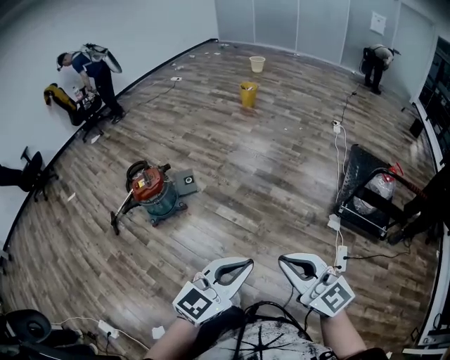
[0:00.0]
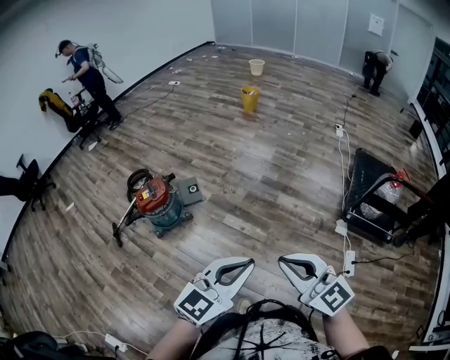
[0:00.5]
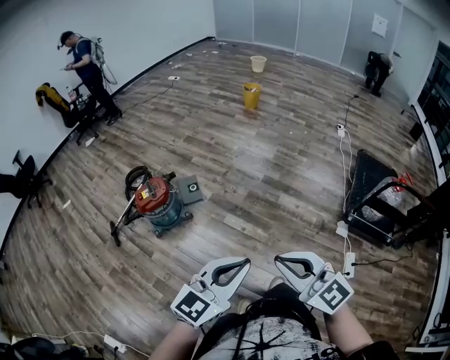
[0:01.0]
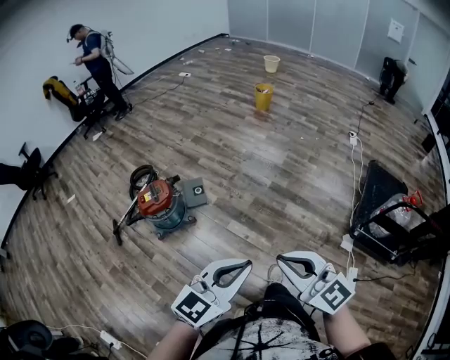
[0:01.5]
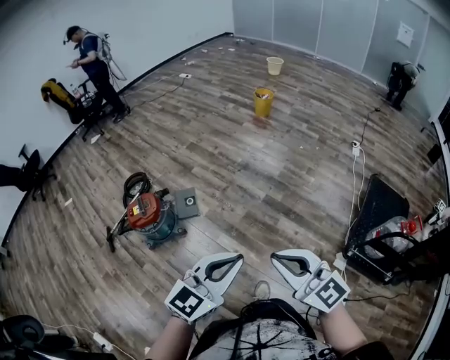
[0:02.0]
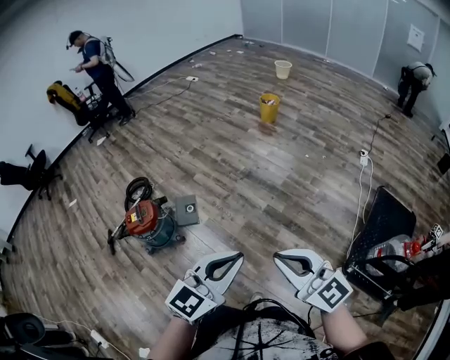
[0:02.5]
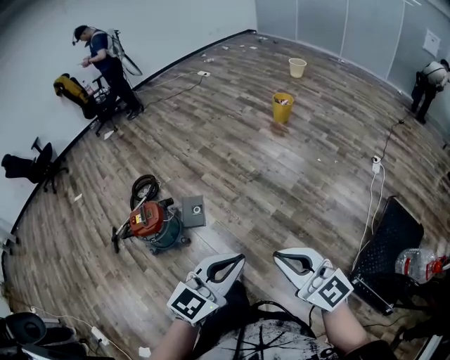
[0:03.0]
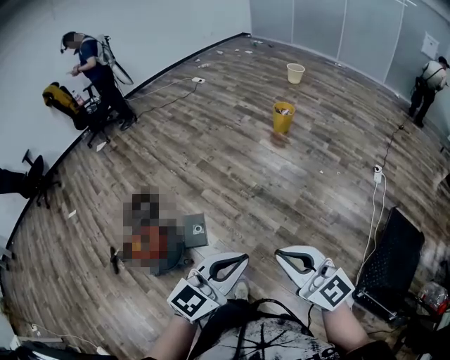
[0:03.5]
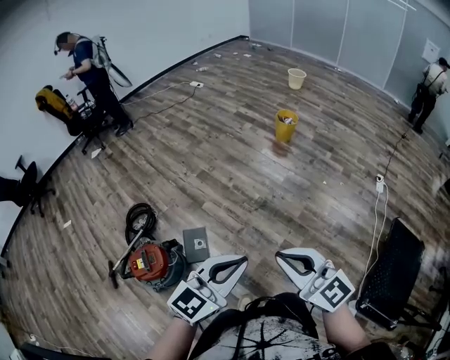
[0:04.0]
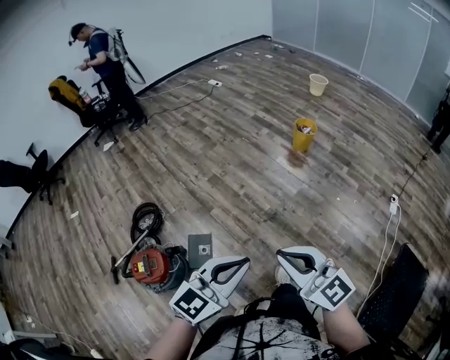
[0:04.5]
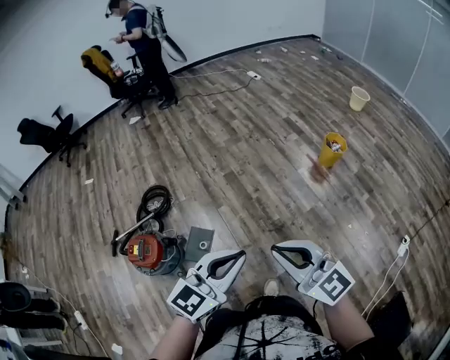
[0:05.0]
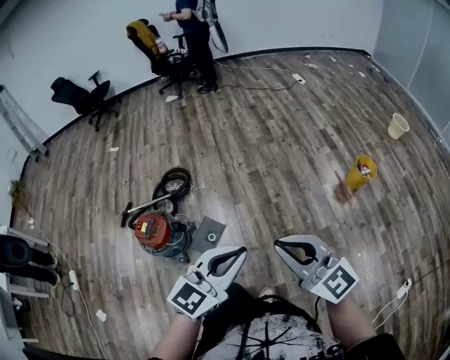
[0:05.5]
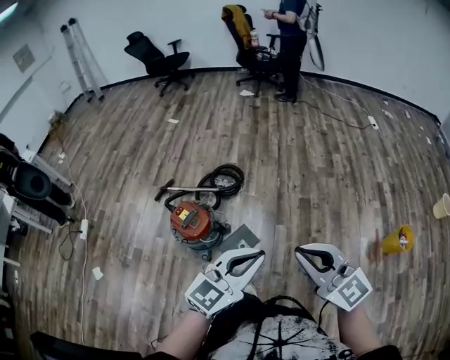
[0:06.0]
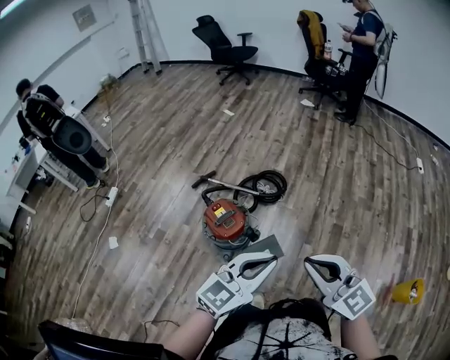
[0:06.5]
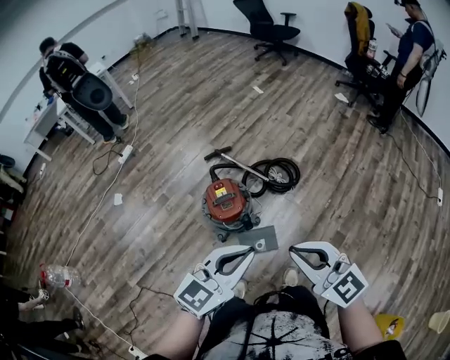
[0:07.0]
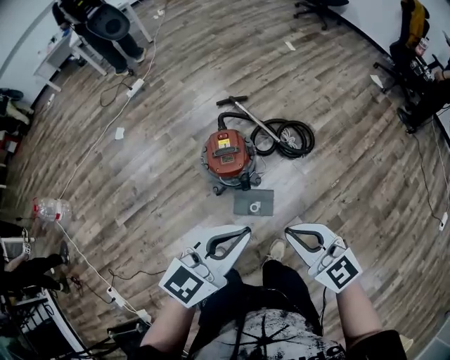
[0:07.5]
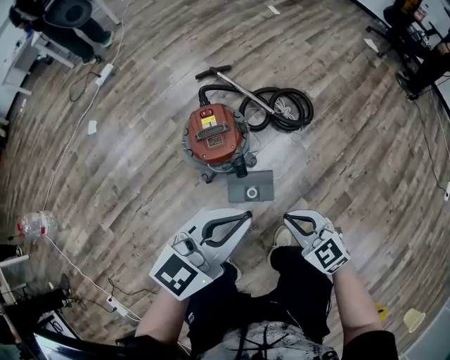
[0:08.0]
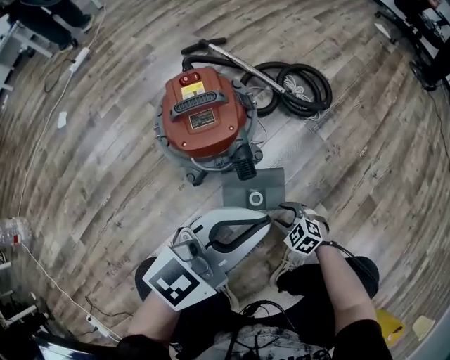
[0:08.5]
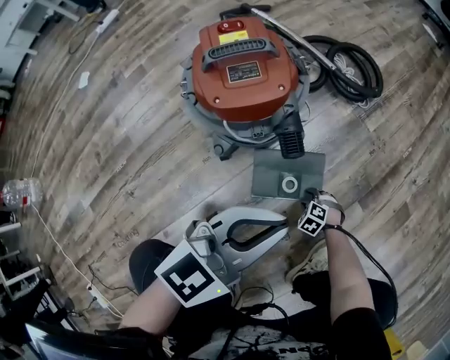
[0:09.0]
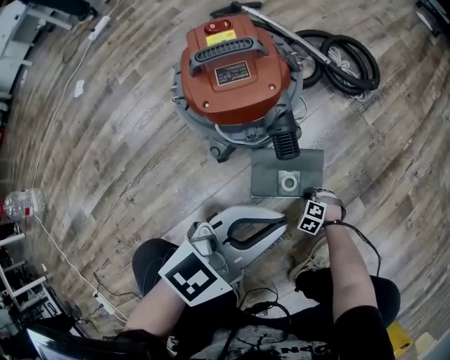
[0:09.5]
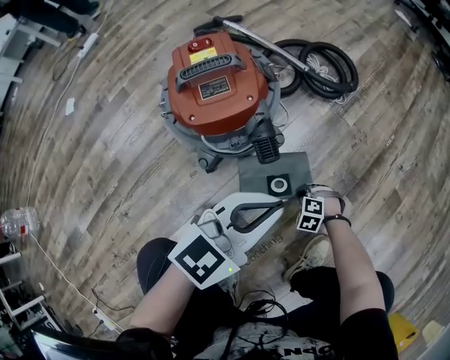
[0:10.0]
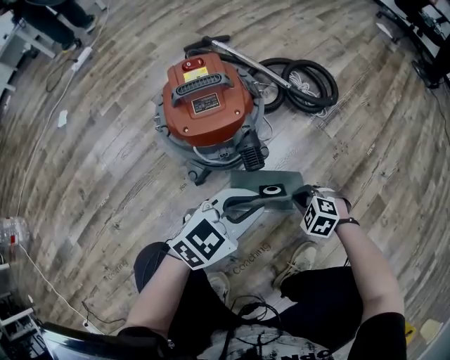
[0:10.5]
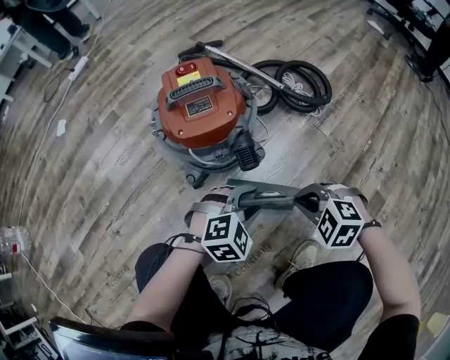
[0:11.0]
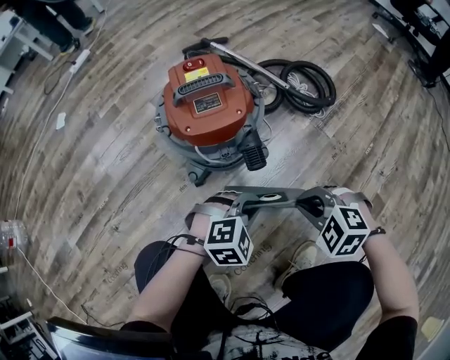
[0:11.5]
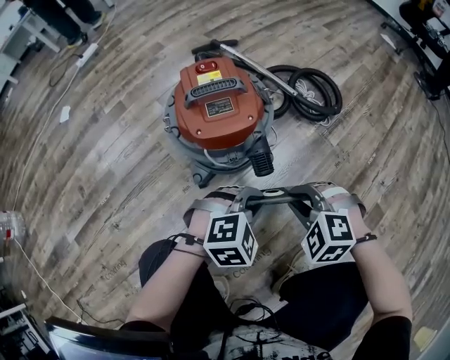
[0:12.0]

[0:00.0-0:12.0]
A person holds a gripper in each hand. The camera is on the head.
0:00.0 to 0:02.0: The grippers both shift forward by some 35 cm.
0:02.0 to 0:04.0: The two grippers go some 40 cm forward.
0:04.0 to 0:06.0: The right gripper shifts by approximately 30 cm, and rotates some 60 degrees, while the left gripper changes place by approximately 25 cm, and rotates some 60 degrees.
0:06.0 to 0:08.0: The right gripper moves downward, about 40 cm, and tilts its fingers roughly 40 degrees downward. The left gripper shifts by approximately 30 cm, and swivels some 40 degrees.
0:08.0 to 0:10.0: Both grippers move downward, roughly 50 cm. The right gripper tips its fingers downward by approximately 40 degrees, and opens, then closes again.
0:10.0 to 0:12.0: The left gripper shifts some 10 cm downward, points its fingers some 30 degrees further downward, and opens, then closes again, while the right gripper shifts about 30 cm upward.

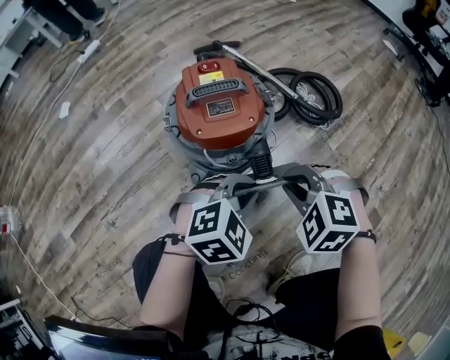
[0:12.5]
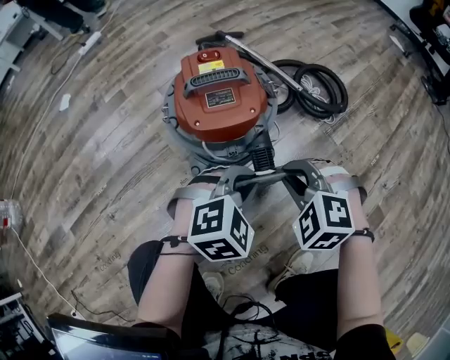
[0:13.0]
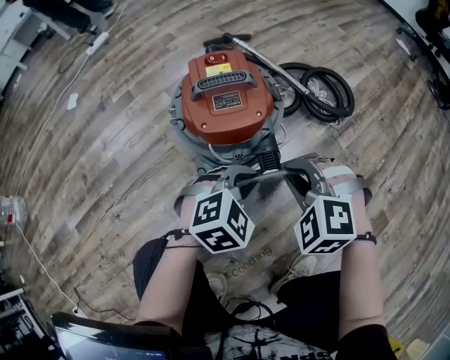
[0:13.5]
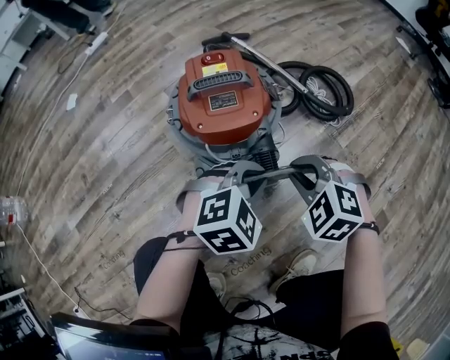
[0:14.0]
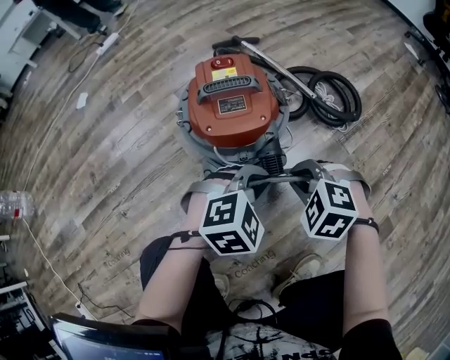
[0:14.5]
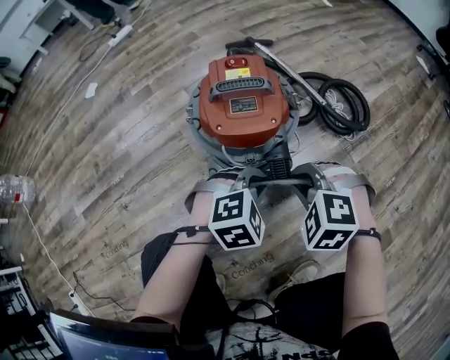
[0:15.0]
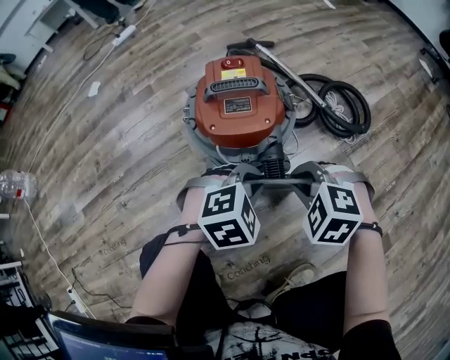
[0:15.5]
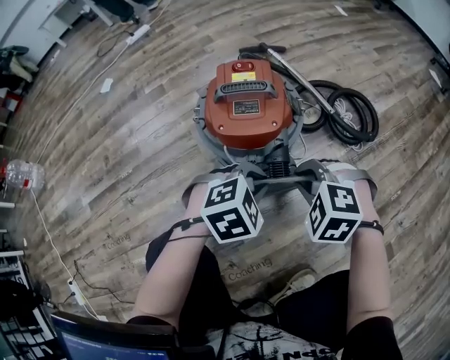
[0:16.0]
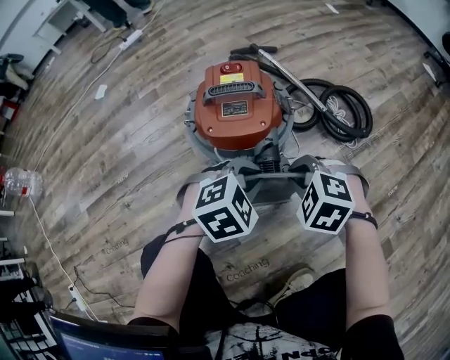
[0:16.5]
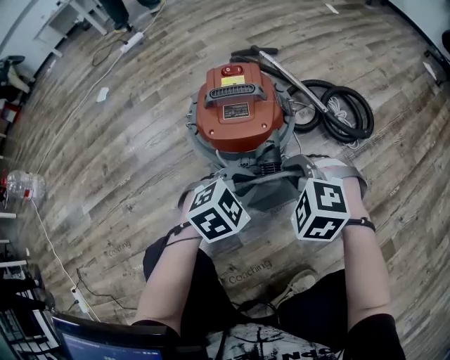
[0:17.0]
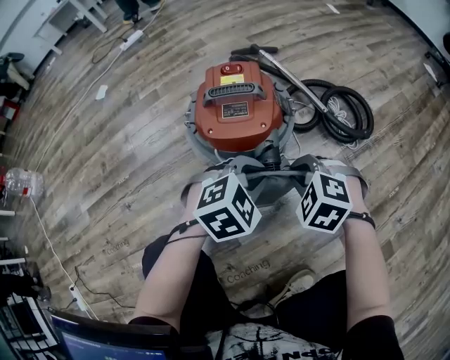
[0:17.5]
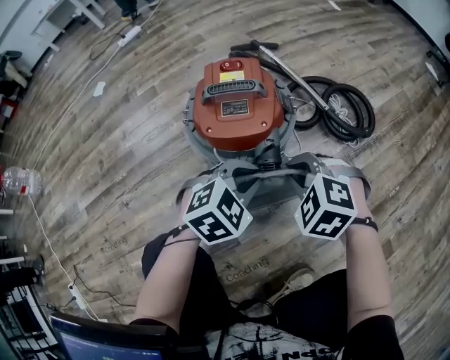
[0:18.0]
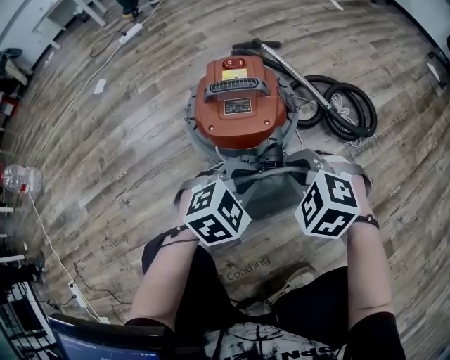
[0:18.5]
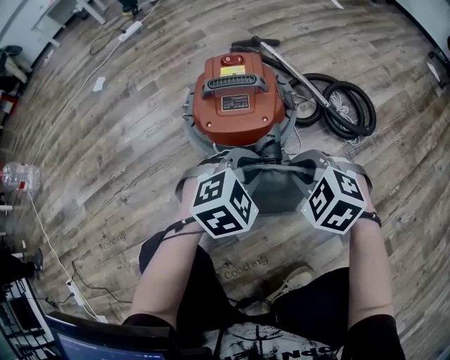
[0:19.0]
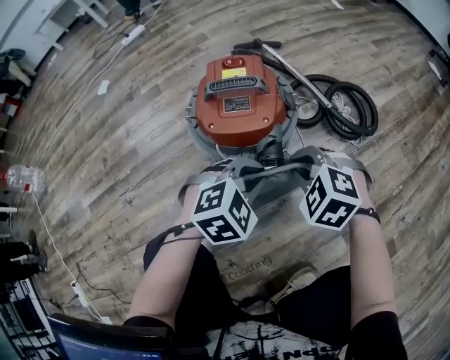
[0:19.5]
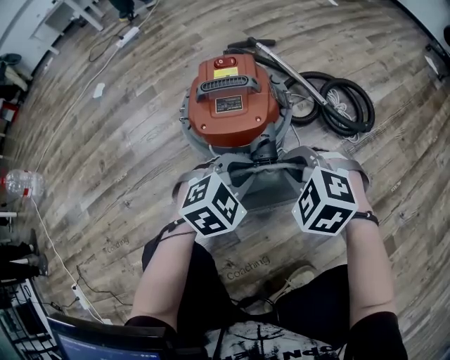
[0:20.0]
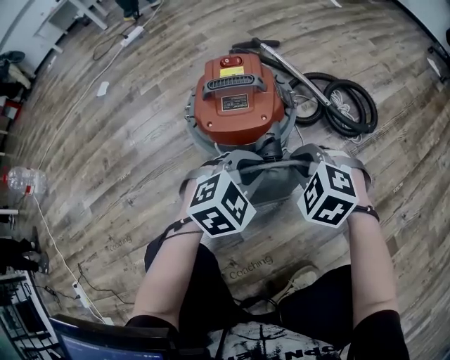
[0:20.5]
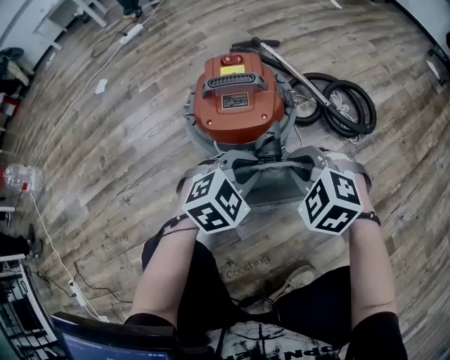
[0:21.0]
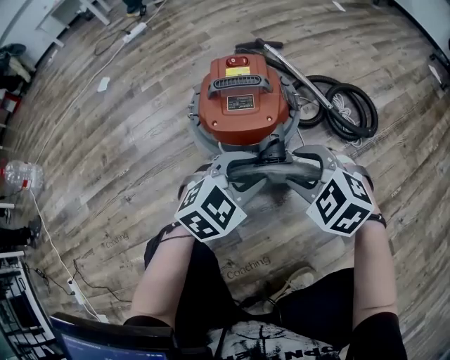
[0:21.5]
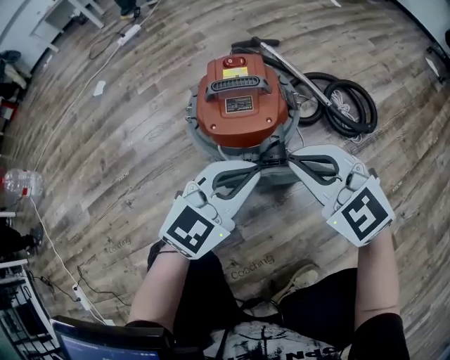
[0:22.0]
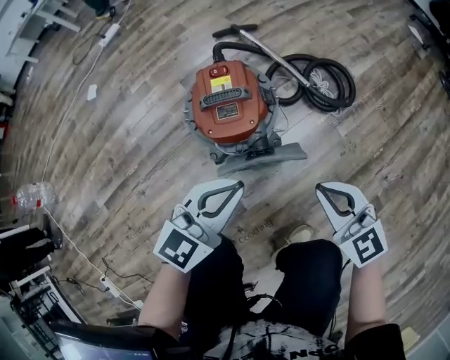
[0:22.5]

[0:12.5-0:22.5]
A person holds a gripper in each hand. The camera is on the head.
0:12.5 to 0:14.5: The right gripper changes place by roughly 5 cm.
0:14.5 to 0:20.5: There are only small adjustments of the grippers.
0:20.5 to 0:22.5: Both grippers move upward, about 20 cm. The right gripper angles its fingers upward, by roughly 40 degrees, and opens, then closes again. Meanwhile the left gripper tips its fingers upward by approximately 30 degrees, and opens, then closes once more.

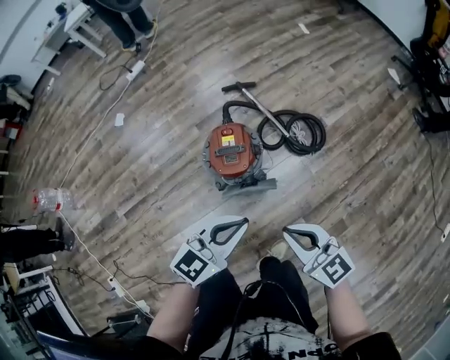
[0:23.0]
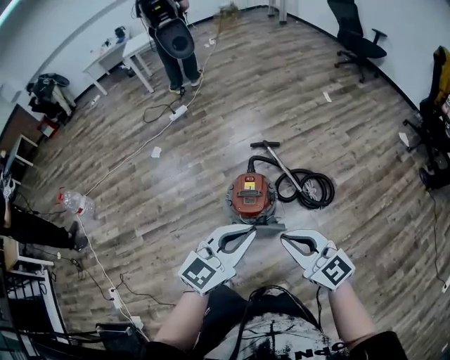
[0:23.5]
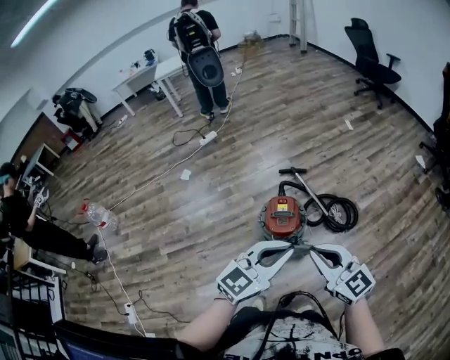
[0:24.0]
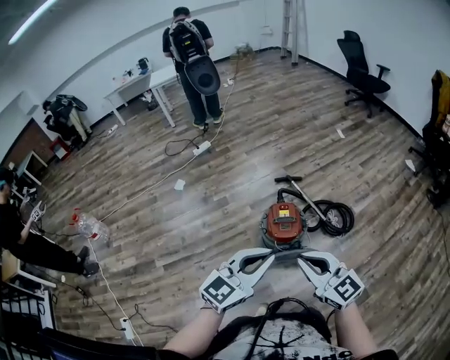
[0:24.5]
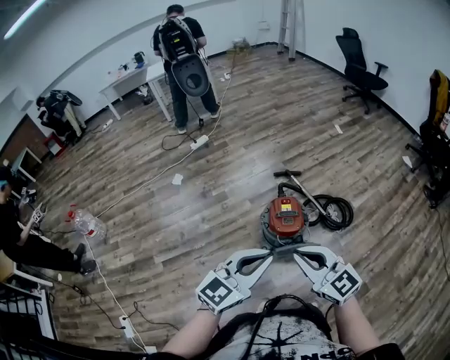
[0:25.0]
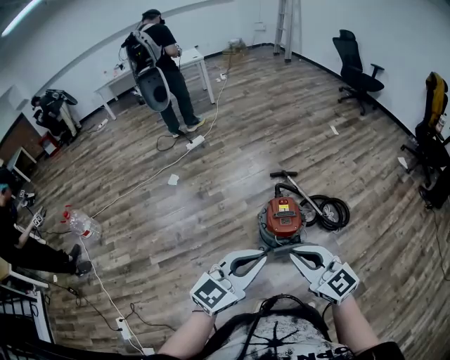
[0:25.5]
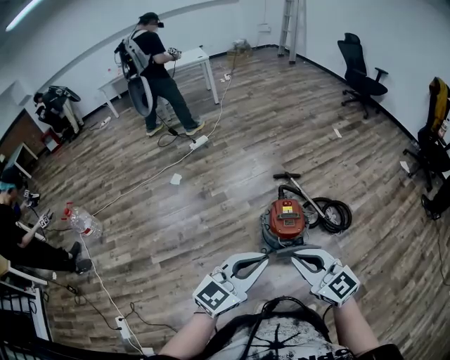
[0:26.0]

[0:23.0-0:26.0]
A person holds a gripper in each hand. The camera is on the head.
0:23.0 to 0:24.5: The left gripper goes some 25 cm upward, to the left and backward. The right gripper goes approximately 20 cm to the left and upward.
0:24.5 to 0:26.0: The two grippers go about 10 cm to the left.

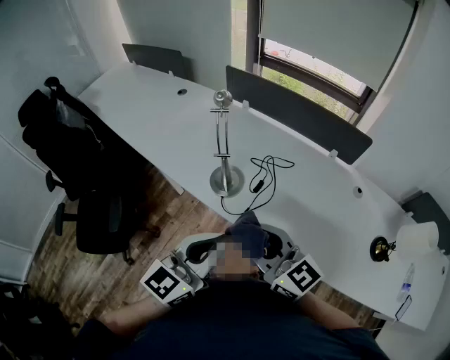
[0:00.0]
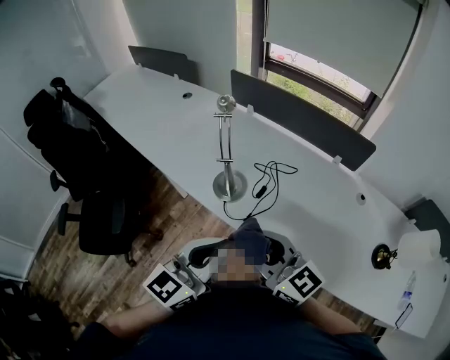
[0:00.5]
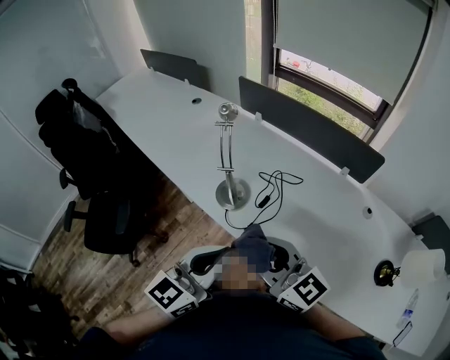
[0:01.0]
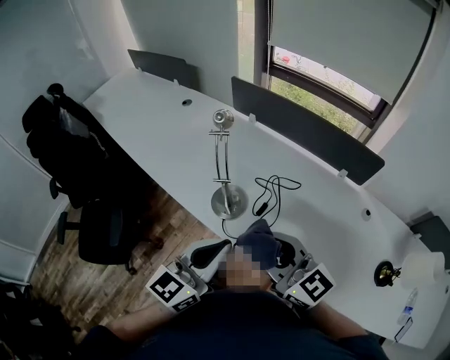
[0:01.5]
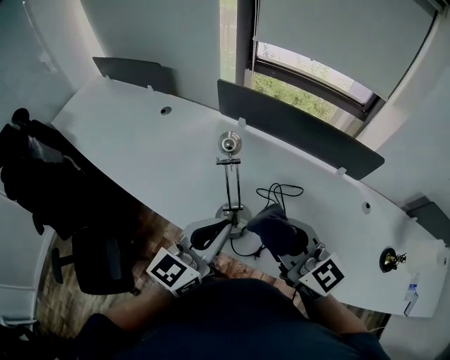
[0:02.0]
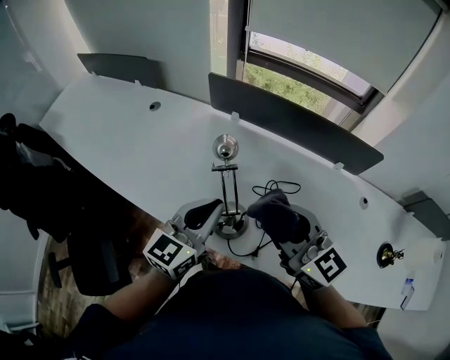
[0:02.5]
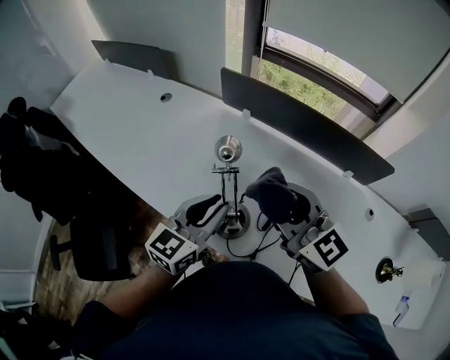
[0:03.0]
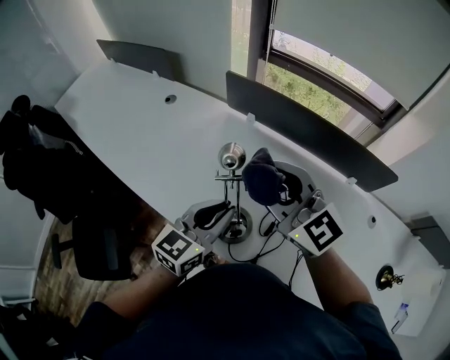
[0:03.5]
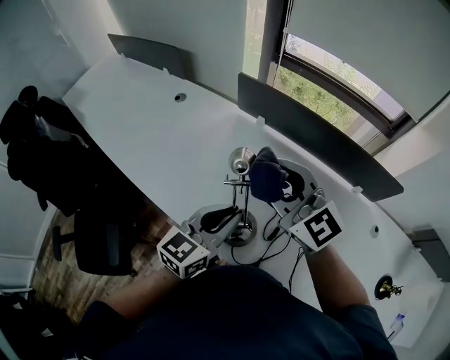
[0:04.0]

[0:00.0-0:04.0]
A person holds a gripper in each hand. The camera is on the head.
0:00.0 to 0:02.0: The two grippers go some 20 cm forward.
0:02.0 to 0:04.0: The left gripper moves forward, about 10 cm; the right gripper travels forward by about 15 cm.
